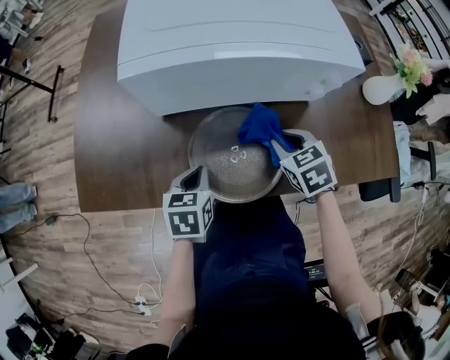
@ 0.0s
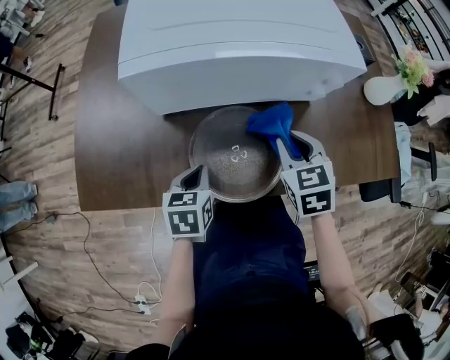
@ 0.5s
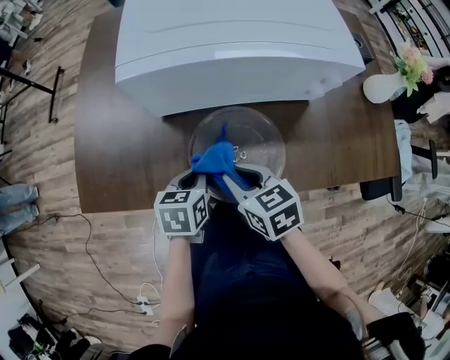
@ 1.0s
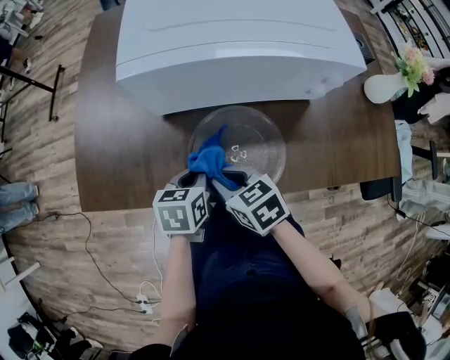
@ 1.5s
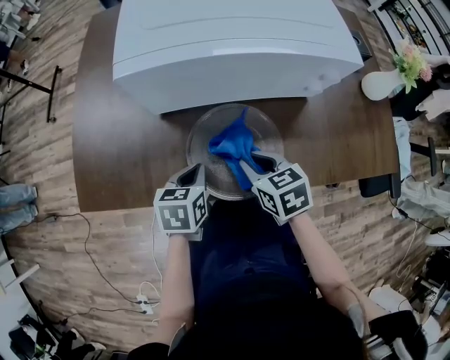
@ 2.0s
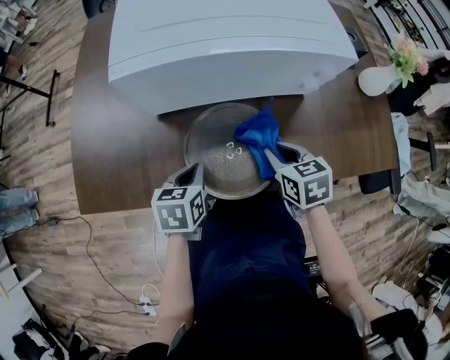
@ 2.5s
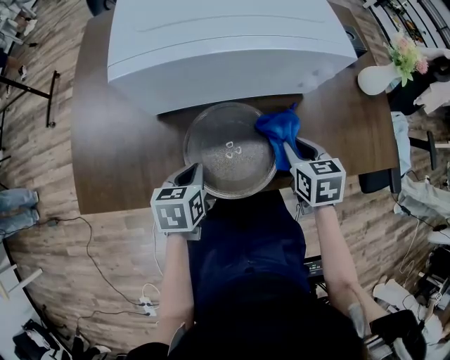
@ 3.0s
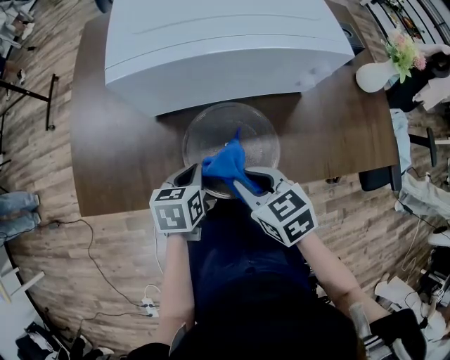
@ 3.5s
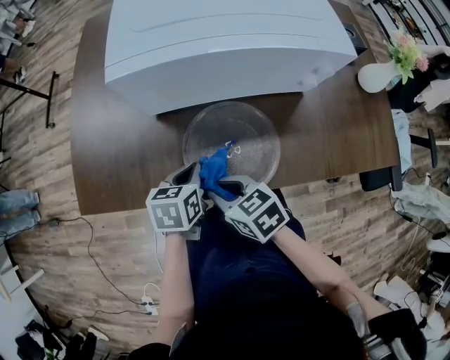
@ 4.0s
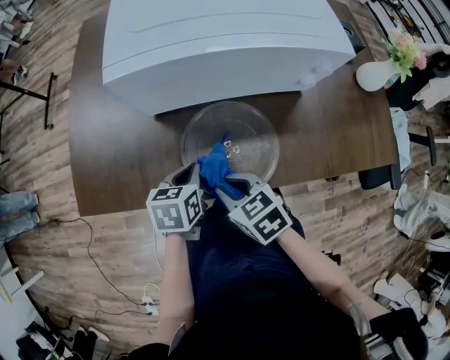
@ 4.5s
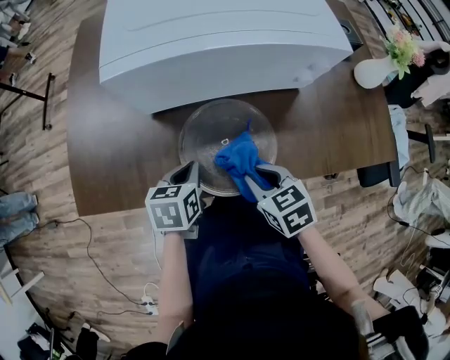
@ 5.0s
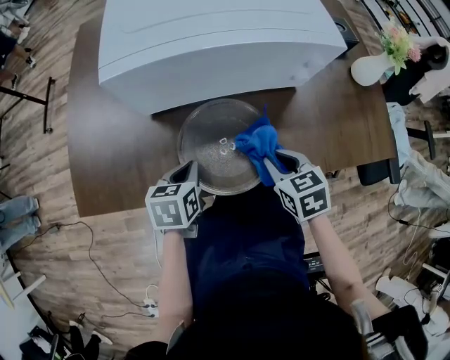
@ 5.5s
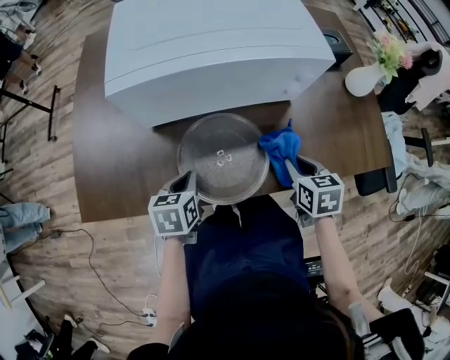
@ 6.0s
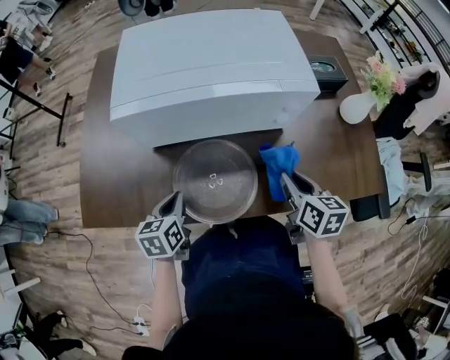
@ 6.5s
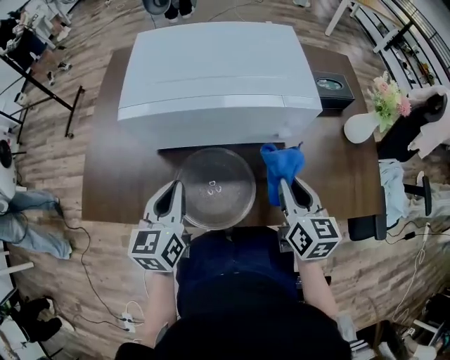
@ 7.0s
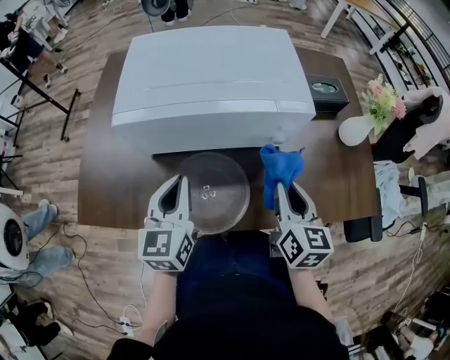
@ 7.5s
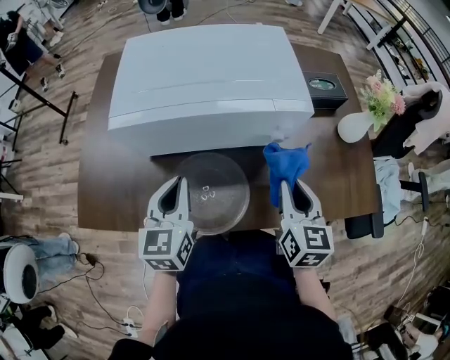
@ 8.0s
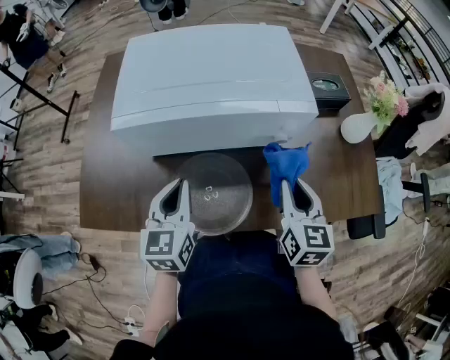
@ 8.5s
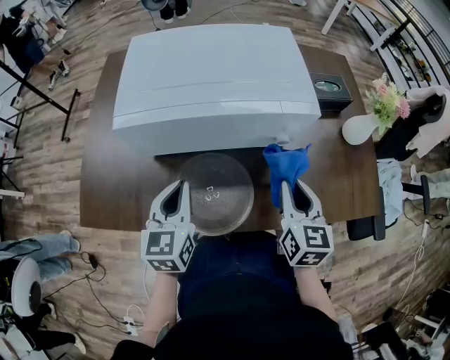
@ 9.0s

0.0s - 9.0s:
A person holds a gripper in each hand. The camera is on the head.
0.0s - 2.0s: The right gripper goes approximately 10 cm to the left and backward.
2.0s - 4.5s: The right gripper shifts about 5 cm backward, and goes to the right and returns, approximately 15 cm each way.
4.5s - 7.0s: The right gripper shifts roughly 25 cm to the right and upward, and rotates roughly 40 degrees. Meanwhile the left gripper moves upward, roughly 15 cm, and changes its angle by some 30 degrees.
7.0s - 9.0s: There are only small adjustments of the grippers.

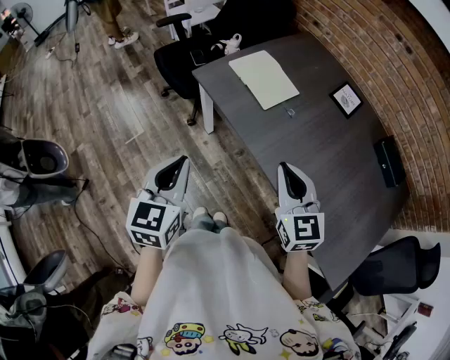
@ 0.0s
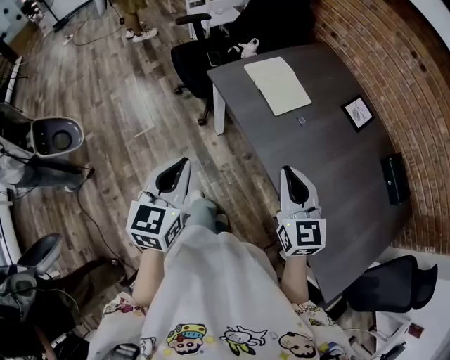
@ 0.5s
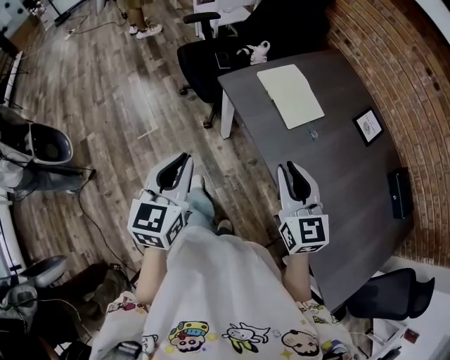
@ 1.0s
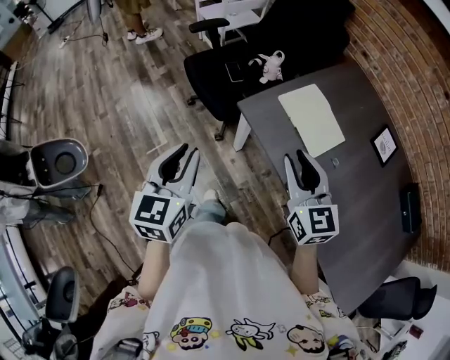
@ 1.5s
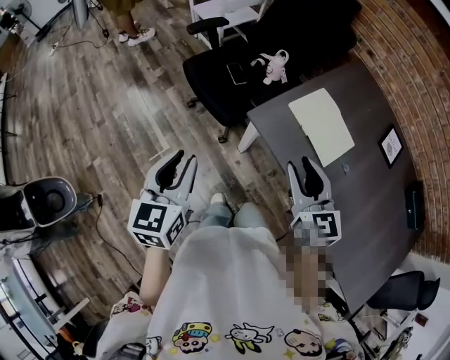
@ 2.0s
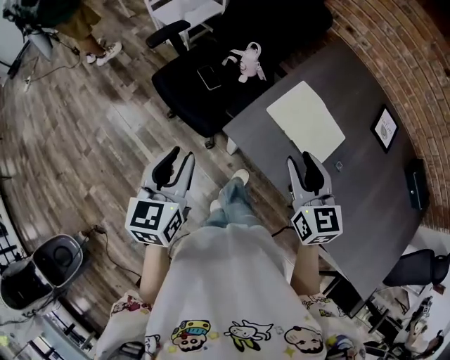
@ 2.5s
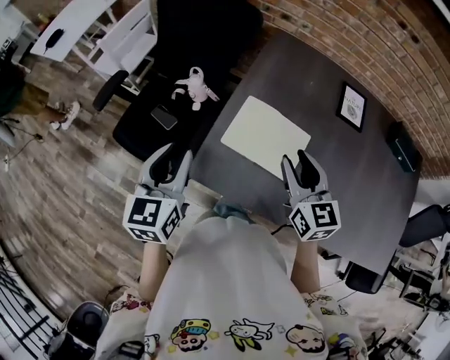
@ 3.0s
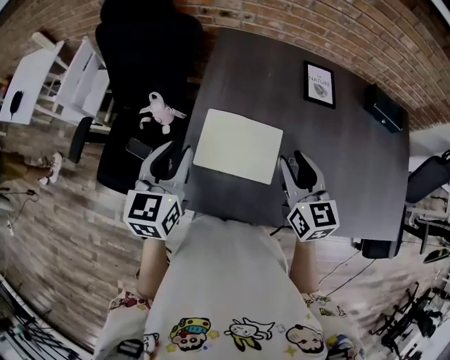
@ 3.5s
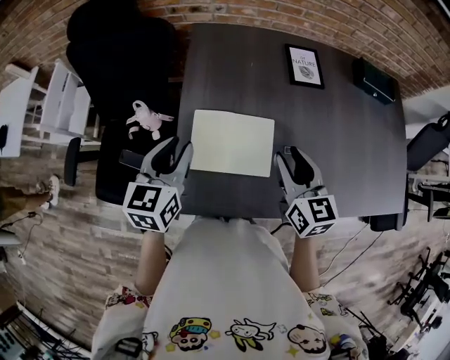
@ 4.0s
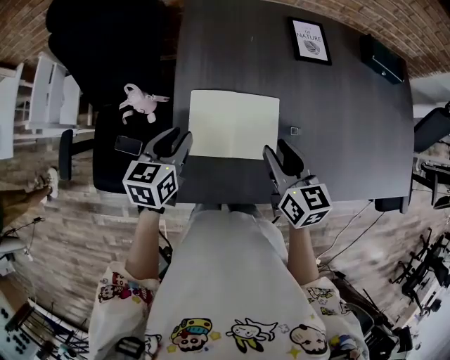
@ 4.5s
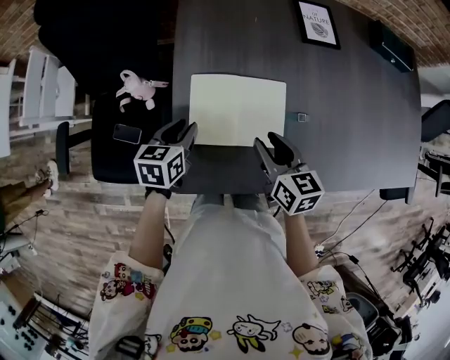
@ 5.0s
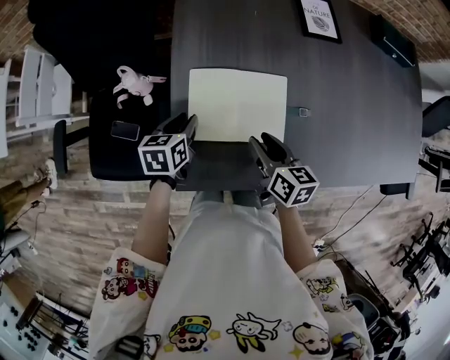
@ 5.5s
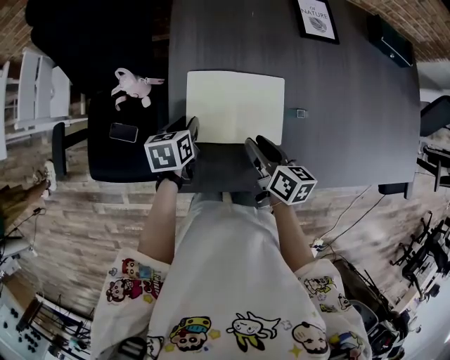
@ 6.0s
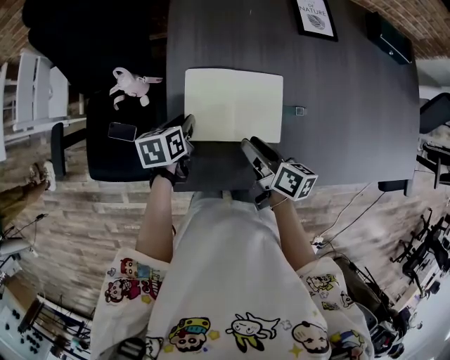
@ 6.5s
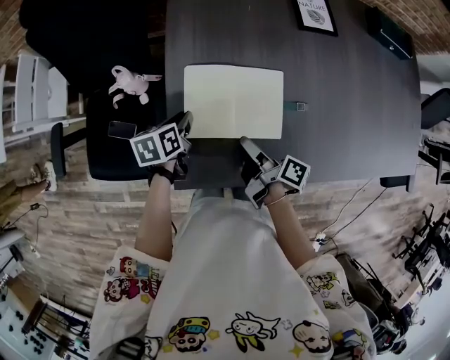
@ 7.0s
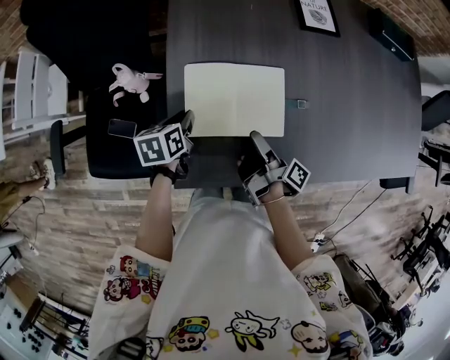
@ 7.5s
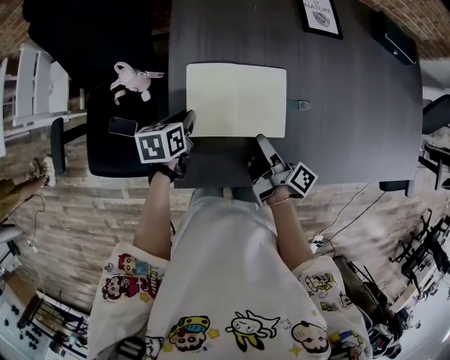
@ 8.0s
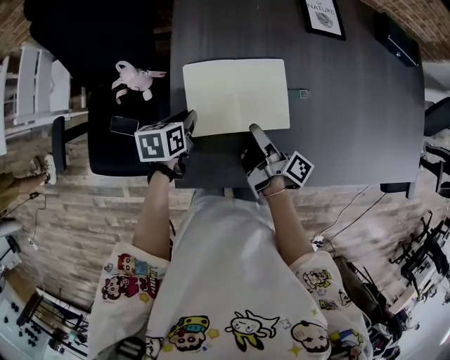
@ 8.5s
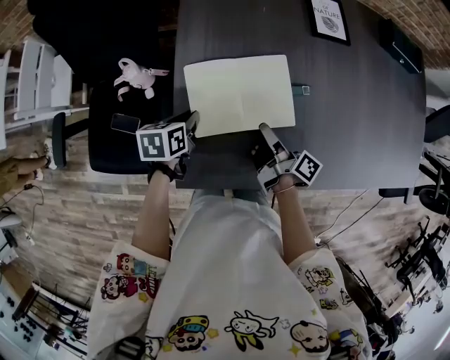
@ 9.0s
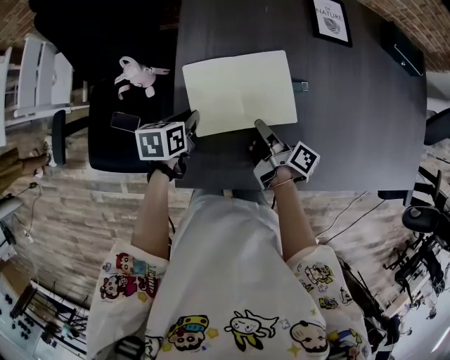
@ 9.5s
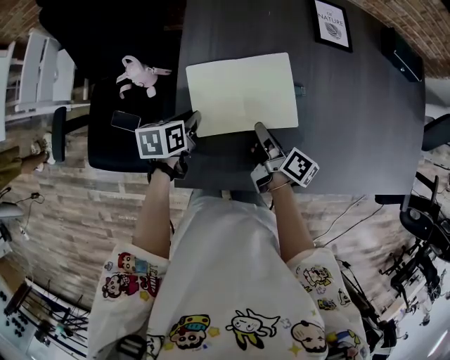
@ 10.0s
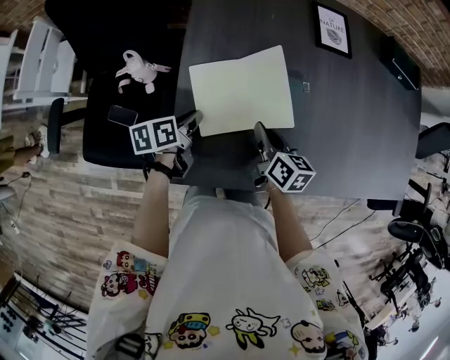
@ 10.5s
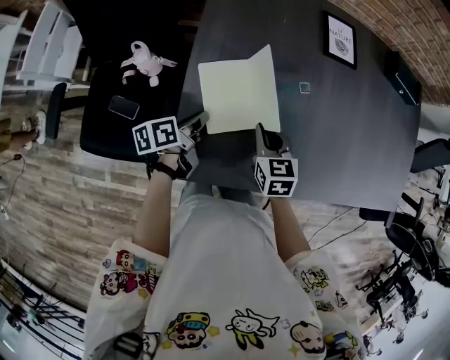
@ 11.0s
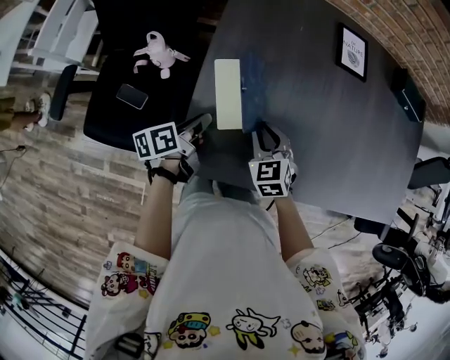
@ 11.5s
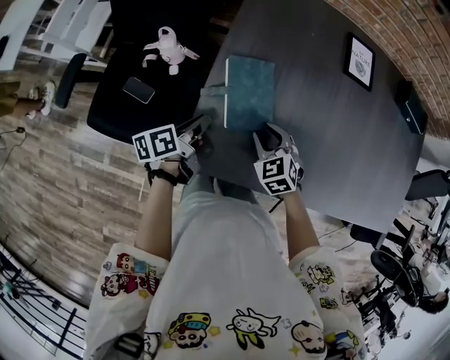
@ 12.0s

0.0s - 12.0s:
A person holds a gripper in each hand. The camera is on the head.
0.0s - 2.0s: Both grippers move forward and to the left, approximately 30 cm. The left gripper opens its fingers. Meanwhile the right gripper opens its fingers.
2.0s - 4.0s: The right gripper shifts by approximately 30 cm, and swivels about 50 degrees, while the left gripper changes place by some 50 cm, and rotates about 50 degrees.
4.0s - 6.0s: Both grippers move downward, approximately 20 cm. The right gripper turns by some 40 degrees, while the left gripper changes its angle by approximately 30 degrees.
6.0s - 8.0s: The right gripper twists roughly 40 degrees clockwise, seen from behind.
8.0s - 10.0s: The right gripper ends up roughly 5 cm from where it was, rotates approximately 20 degrees, and closes.
10.0s - 12.0s: The left gripper is displaced backward by about 5 cm, and swivels roughly 40 degrees, while the right gripper heads to the left, covering some 5 cm, rotates around the line of its fingers by about 100 degrees, counterclockwise from behind, and opens its fingers.

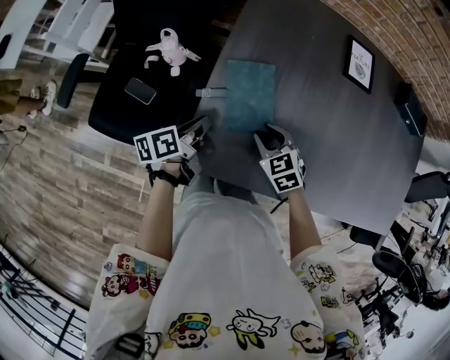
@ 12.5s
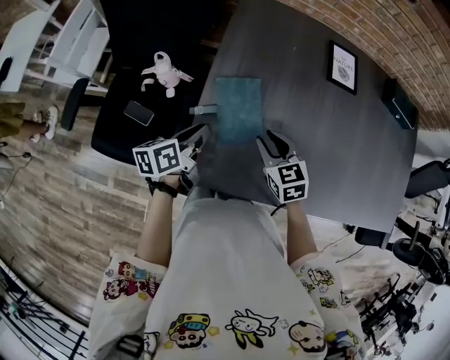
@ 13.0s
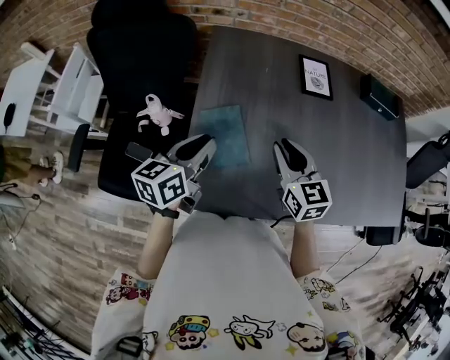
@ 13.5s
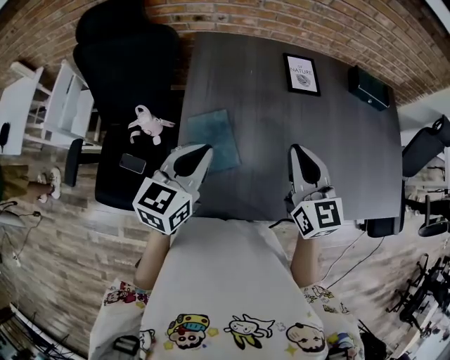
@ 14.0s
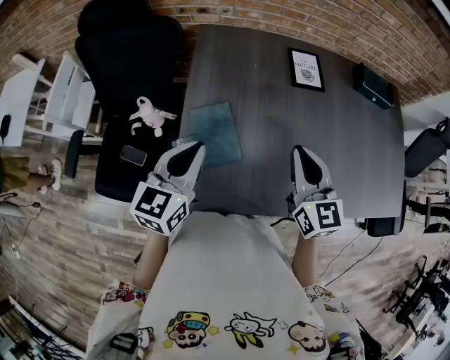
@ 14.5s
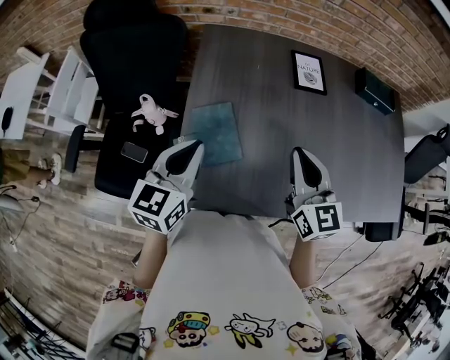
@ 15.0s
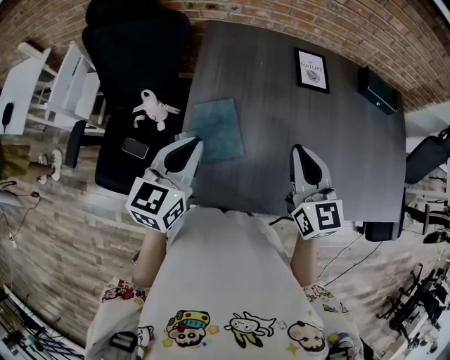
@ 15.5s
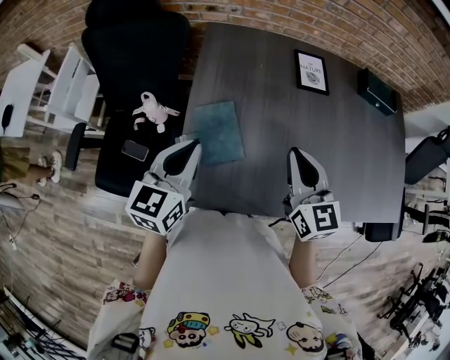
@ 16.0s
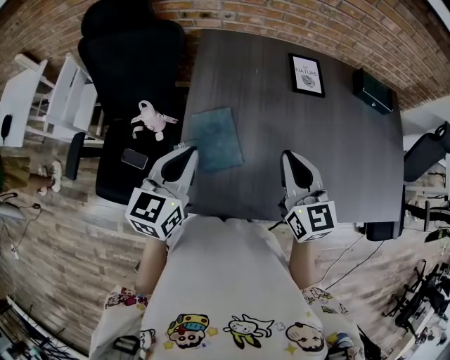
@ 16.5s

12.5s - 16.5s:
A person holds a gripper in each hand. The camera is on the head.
12.5s - 14.5s: The left gripper travels upward by approximately 20 cm, and twists approximately 60 degrees clockwise, seen from behind. Meanwhile the right gripper goes some 30 cm upward and to the right, points its fingers roughly 40 degrees further upward, and closes.
14.5s - 16.5s: The grippers move only a little.

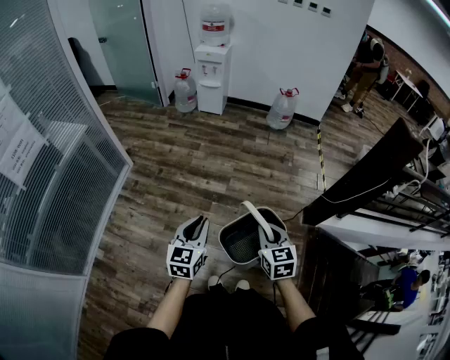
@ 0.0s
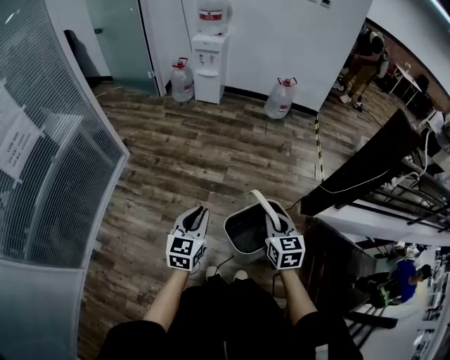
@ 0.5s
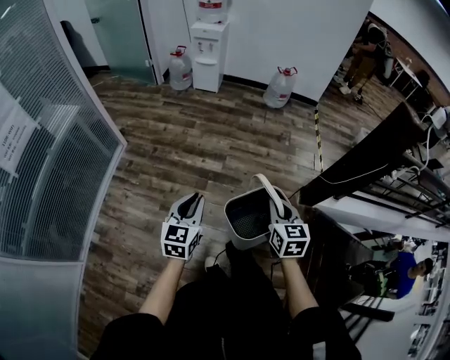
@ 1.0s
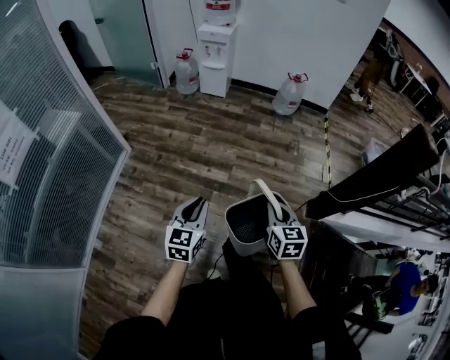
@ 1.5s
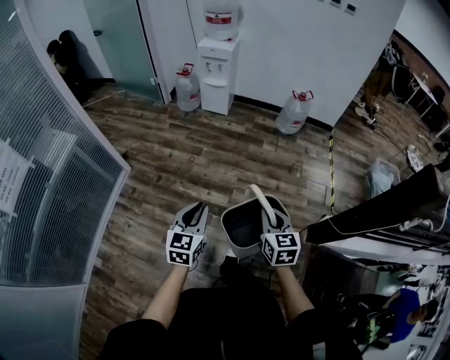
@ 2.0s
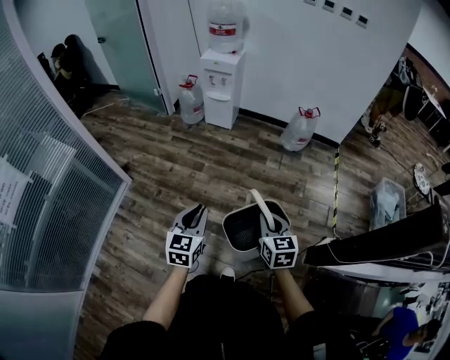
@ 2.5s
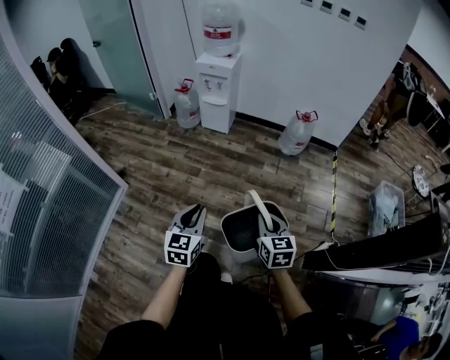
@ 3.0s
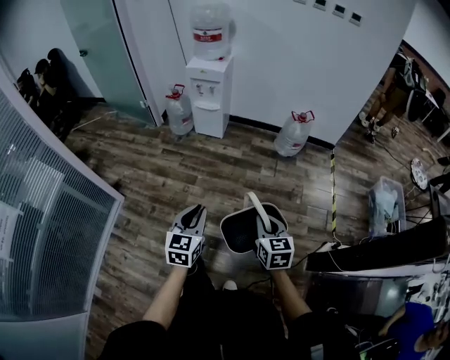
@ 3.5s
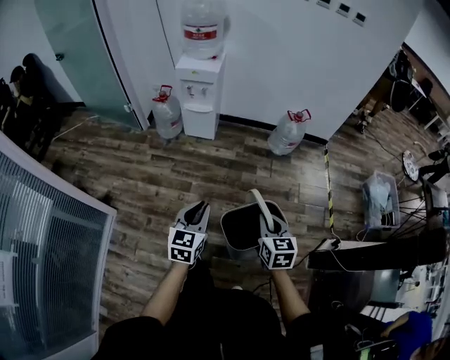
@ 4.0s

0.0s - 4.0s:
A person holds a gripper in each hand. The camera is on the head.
0.0s - 2.0s: The two grippers go some 25 cm forward.
2.0s - 4.0s: The grippers both shift forward by some 35 cm.
